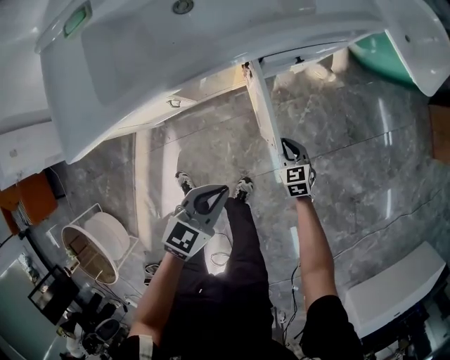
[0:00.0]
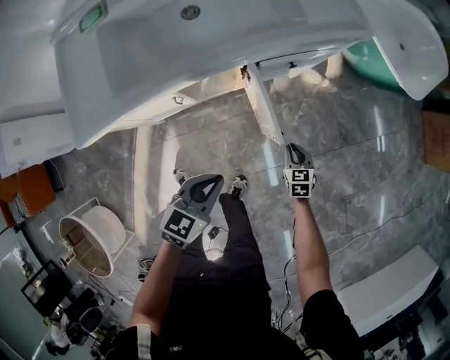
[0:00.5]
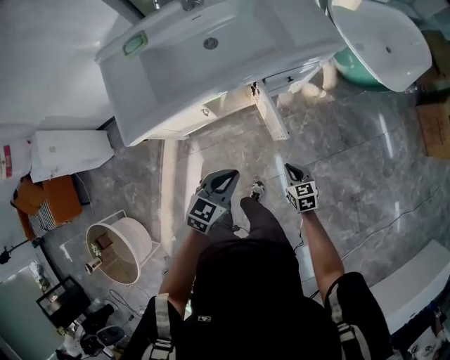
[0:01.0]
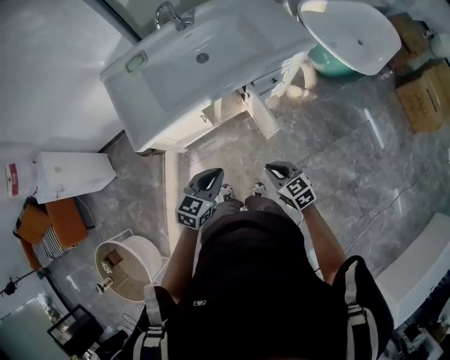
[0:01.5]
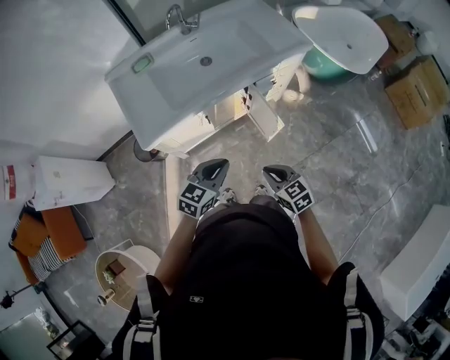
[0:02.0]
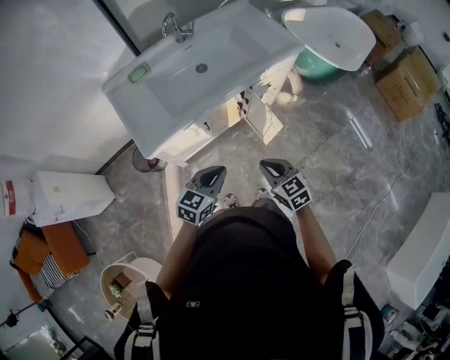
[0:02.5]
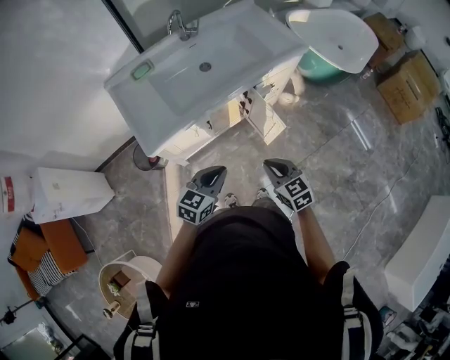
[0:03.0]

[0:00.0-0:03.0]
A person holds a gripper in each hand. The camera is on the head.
0:00.0 to 0:01.5: The right gripper shifts roughly 40 cm upward and backward; the left gripper shifts some 20 cm upward, to the left and backward.
0:01.5 to 0:03.0: The right gripper shifts some 10 cm to the left and upward. Meanwhile the left gripper moves to the left, about 5 cm.

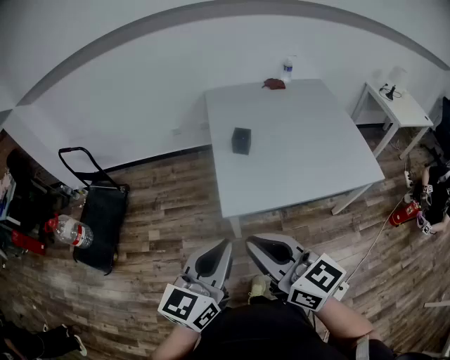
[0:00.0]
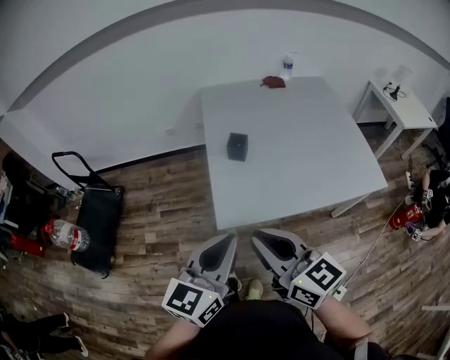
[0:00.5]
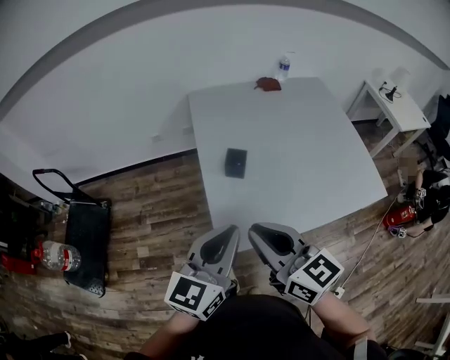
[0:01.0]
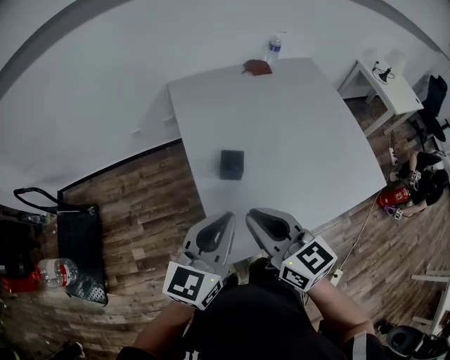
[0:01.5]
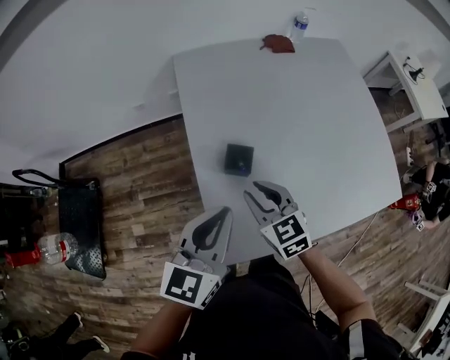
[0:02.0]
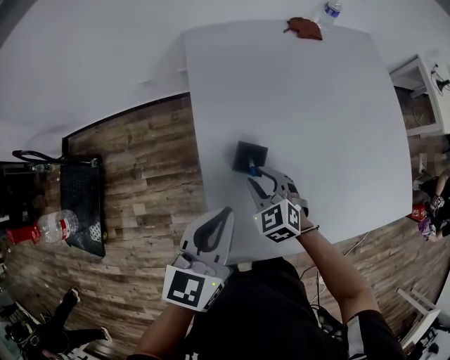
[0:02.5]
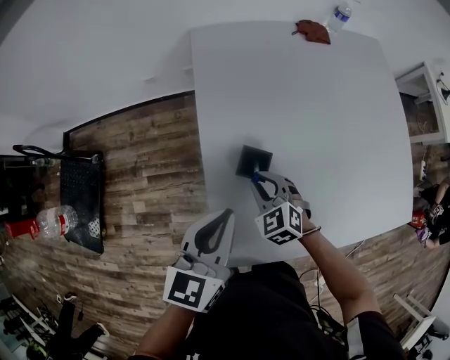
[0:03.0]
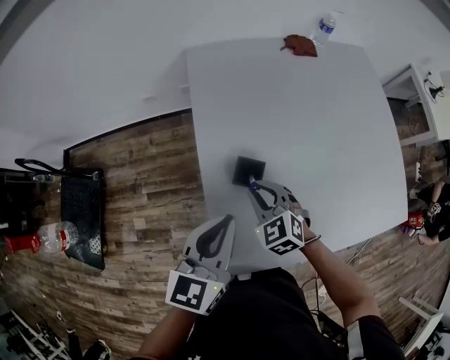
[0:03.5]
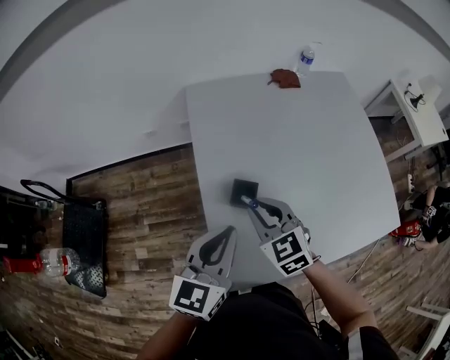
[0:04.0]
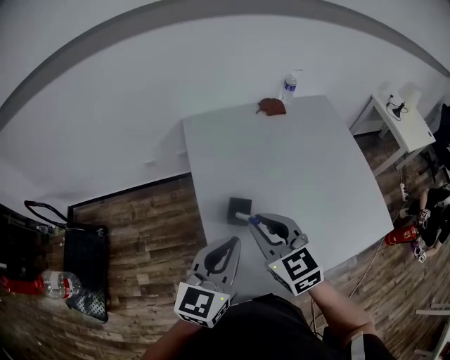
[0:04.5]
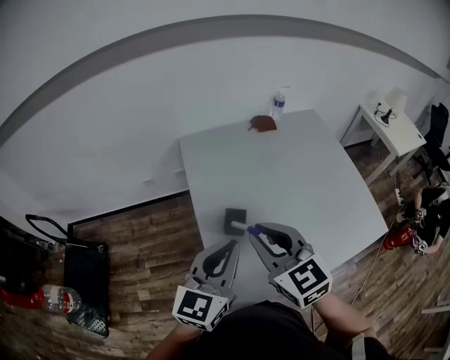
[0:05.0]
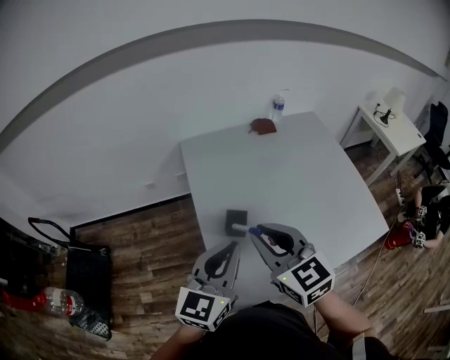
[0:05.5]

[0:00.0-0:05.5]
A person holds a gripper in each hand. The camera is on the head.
0:00.0 to 0:02.0: The left gripper shifts some 40 cm forward, while the right gripper travels forward and downward by some 50 cm, and points its fingers some 30 degrees further downward.
0:02.0 to 0:03.5: The right gripper is displaced downward and forward by about 10 cm, and turns by approximately 20 degrees.
0:03.5 to 0:05.5: The right gripper moves upward, about 25 cm, and turns by roughly 30 degrees. The left gripper is displaced upward by approximately 10 cm.

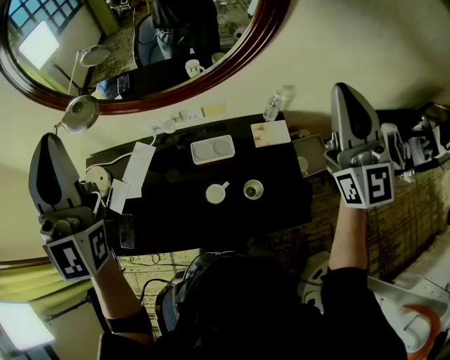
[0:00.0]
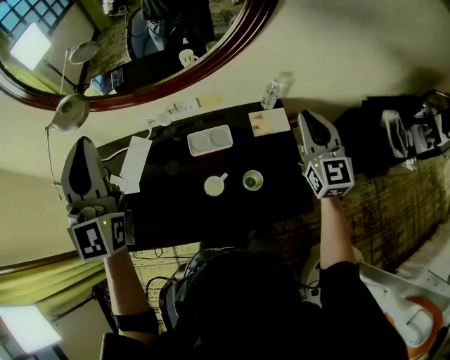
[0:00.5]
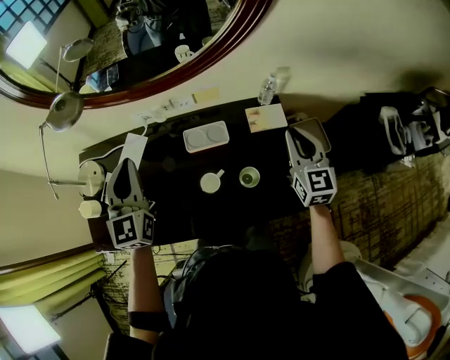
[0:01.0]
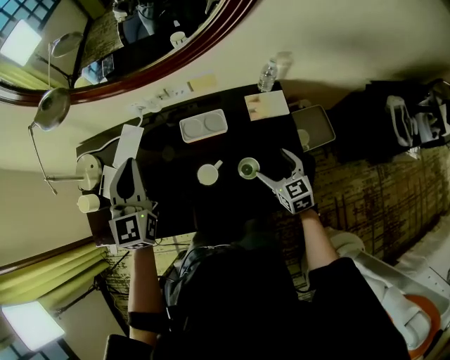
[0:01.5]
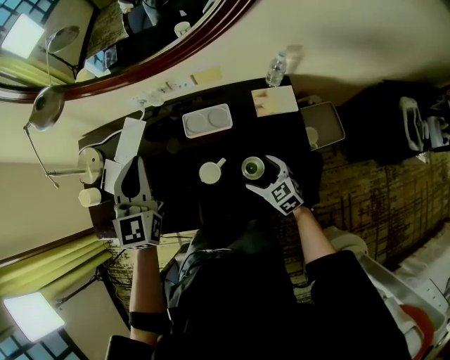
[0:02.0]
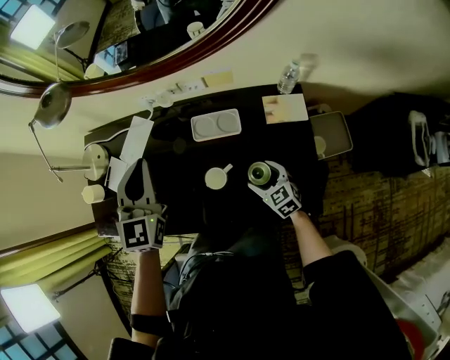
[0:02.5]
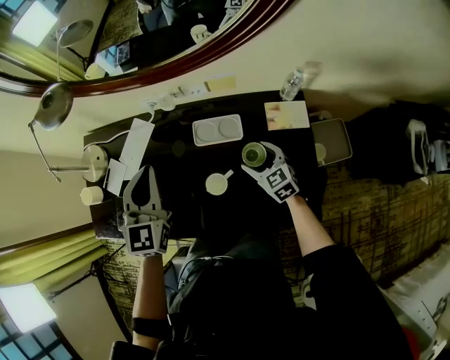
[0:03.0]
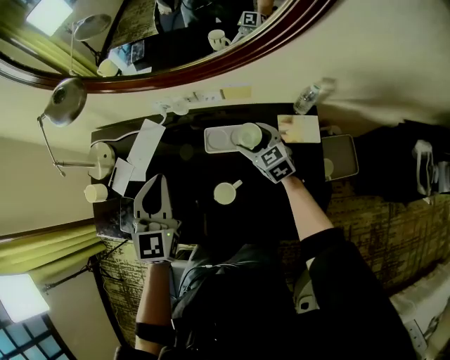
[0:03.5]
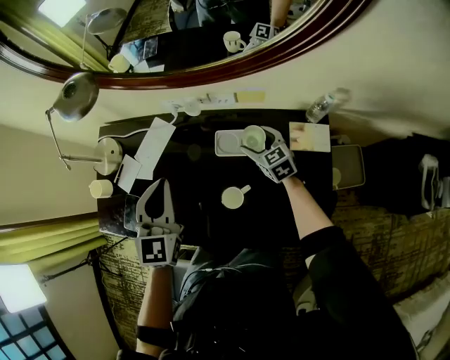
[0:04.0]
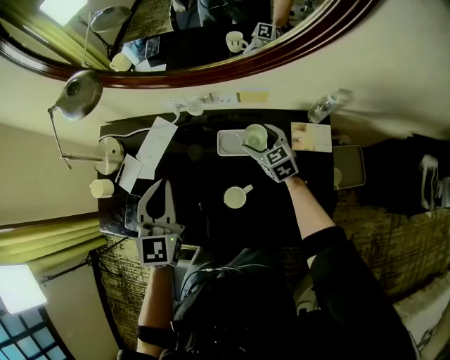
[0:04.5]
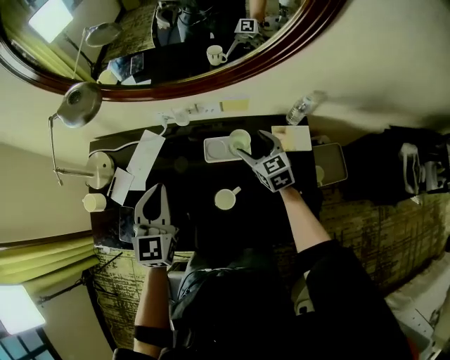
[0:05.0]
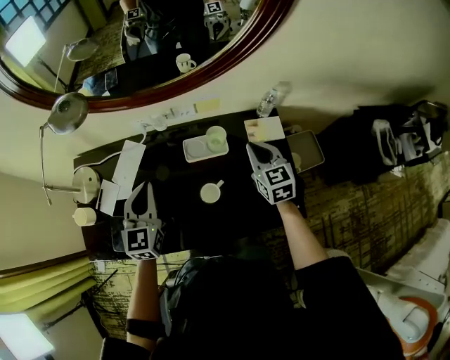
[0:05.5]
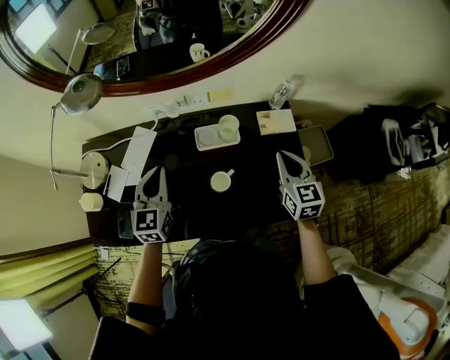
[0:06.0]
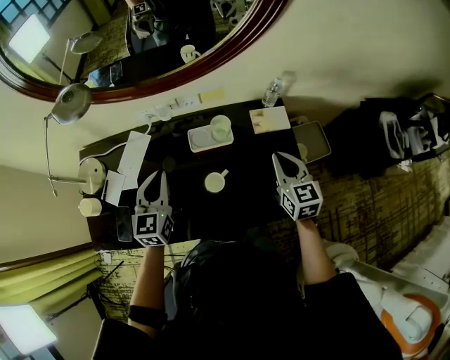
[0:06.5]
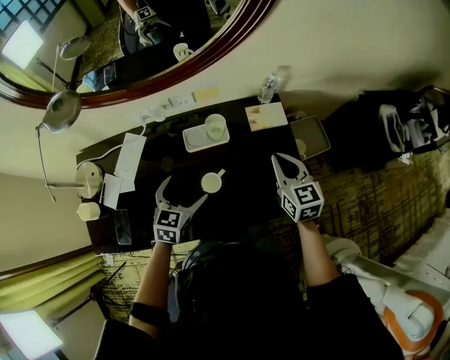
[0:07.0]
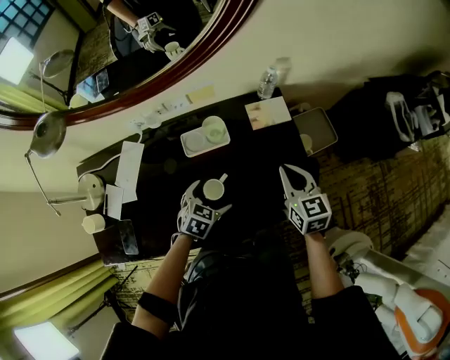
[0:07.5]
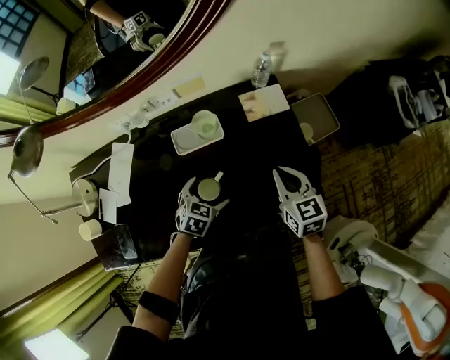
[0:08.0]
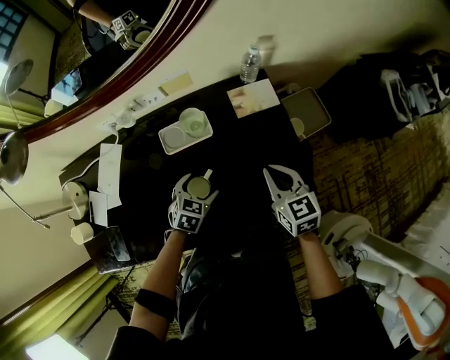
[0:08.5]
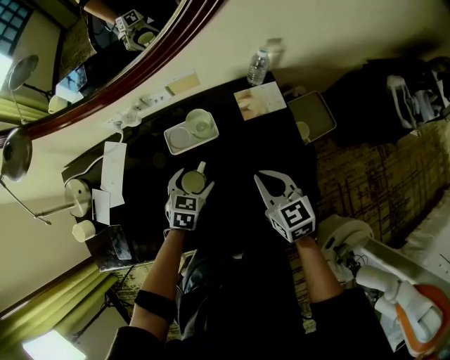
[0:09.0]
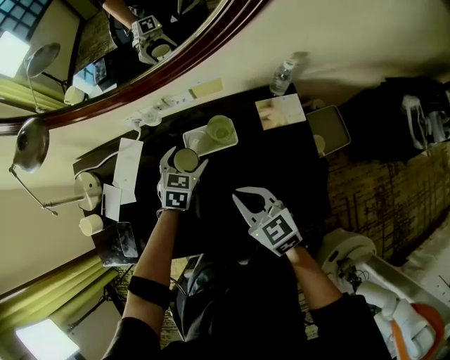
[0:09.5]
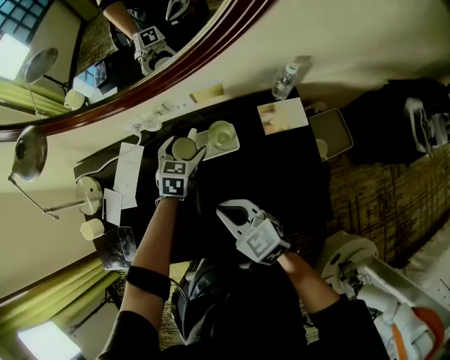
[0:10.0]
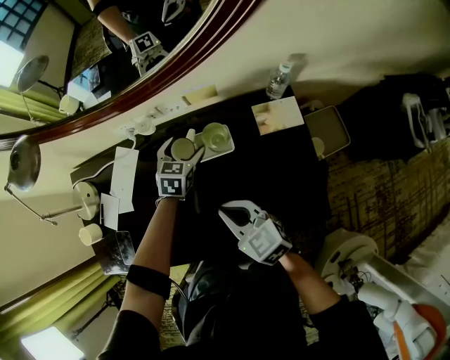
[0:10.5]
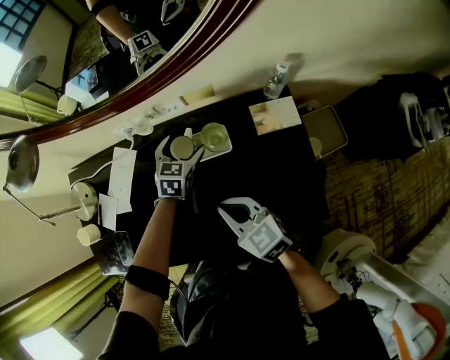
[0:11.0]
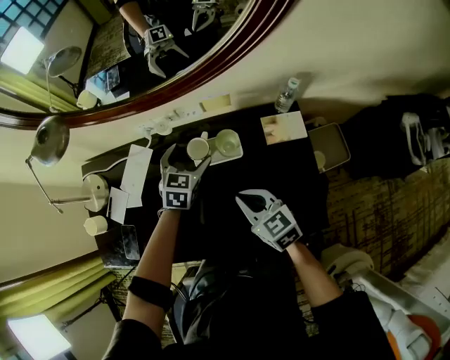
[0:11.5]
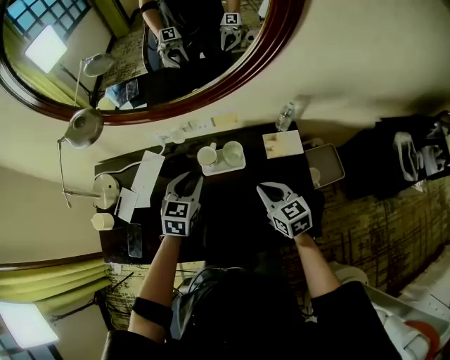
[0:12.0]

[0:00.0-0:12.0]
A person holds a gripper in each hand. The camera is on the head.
0:00.0 to 0:02.0: The left gripper goes about 30 cm downward, and tilts its fingers approximately 30 degrees downward, while the right gripper is displaced downward by roughly 60 cm, tilts its fingers about 60 degrees downward, and opens up.
0:02.0 to 0:04.0: The right gripper heads forward, covering some 25 cm.
0:04.0 to 0:06.0: The right gripper goes roughly 30 cm backward, upward and to the right, swivels about 30 degrees, and closes its fingers. The left gripper ends up about 5 cm from where it was.
0:06.0 to 0:08.0: The right gripper moves downward, roughly 10 cm. Meanwhile the left gripper goes approximately 30 cm downward and to the right, angles its fingers downward, by about 40 degrees, and opens up.
0:08.0 to 0:10.0: The right gripper moves roughly 20 cm, and rotates approximately 40 degrees, while the left gripper shifts by about 20 cm, and rotates approximately 20 degrees.
0:10.0 to 0:12.0: The left gripper moves upward and backward, approximately 15 cm, and closes; the right gripper heads to the right, covering some 15 cm.

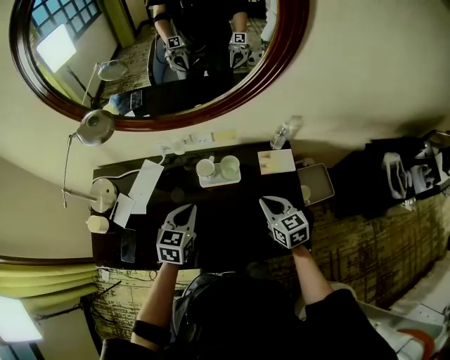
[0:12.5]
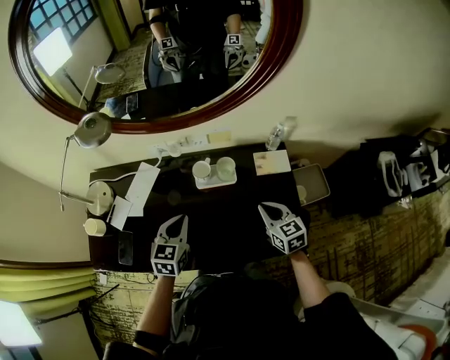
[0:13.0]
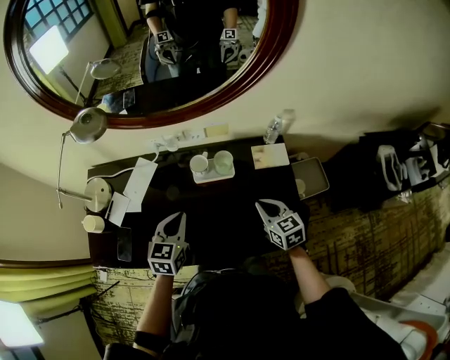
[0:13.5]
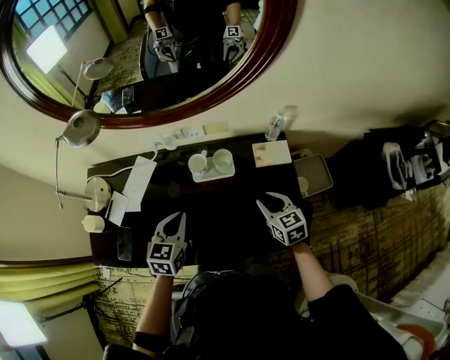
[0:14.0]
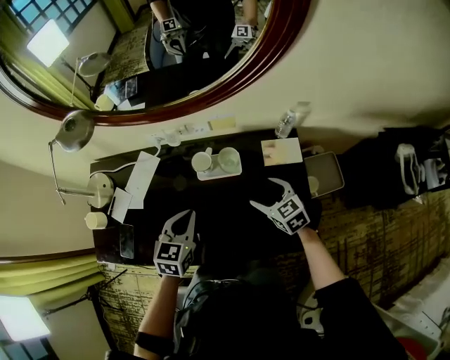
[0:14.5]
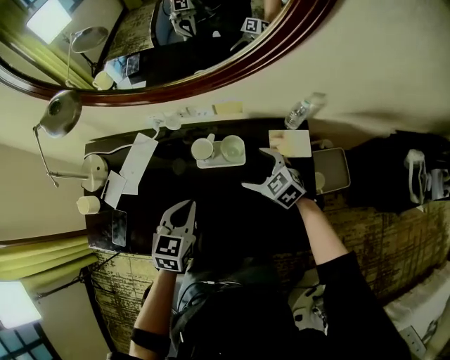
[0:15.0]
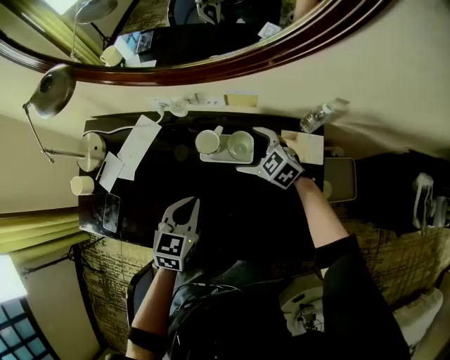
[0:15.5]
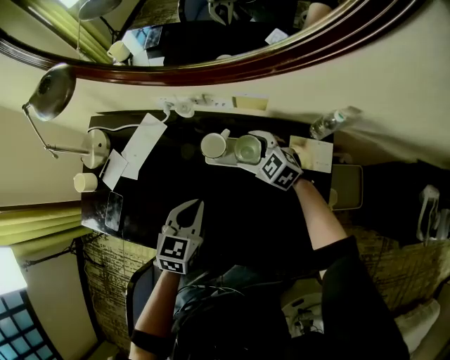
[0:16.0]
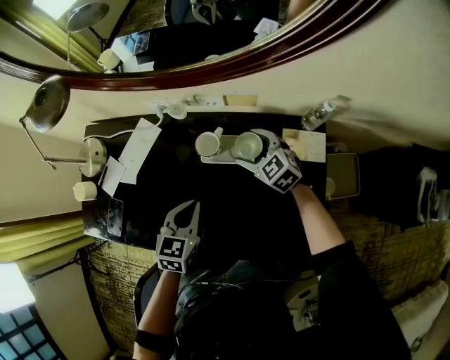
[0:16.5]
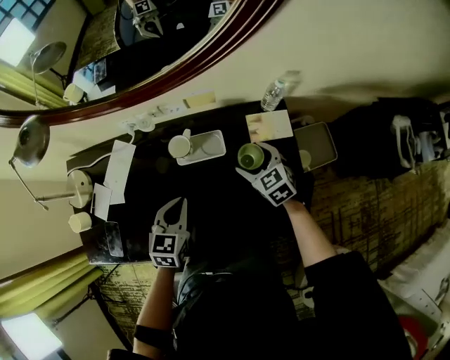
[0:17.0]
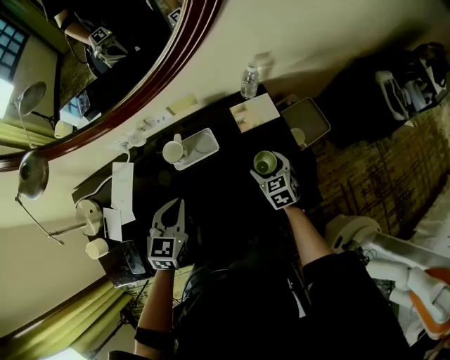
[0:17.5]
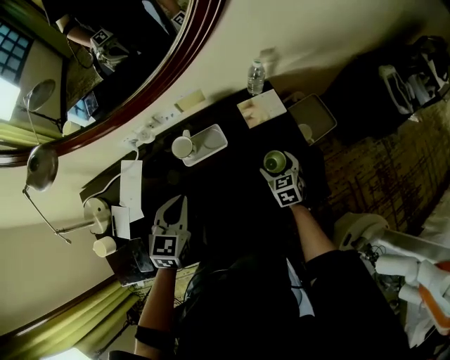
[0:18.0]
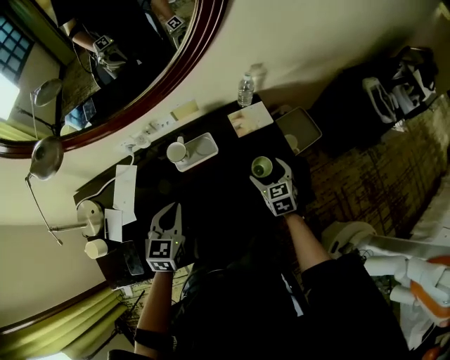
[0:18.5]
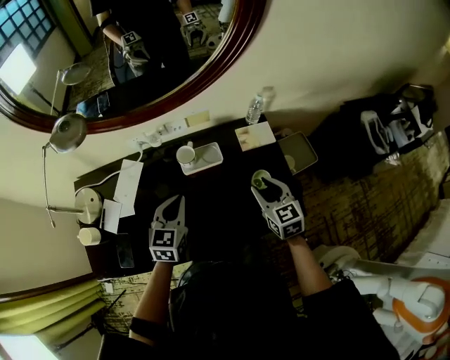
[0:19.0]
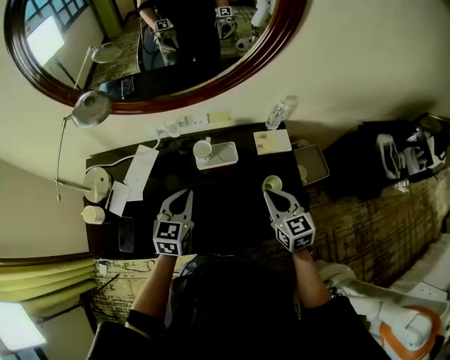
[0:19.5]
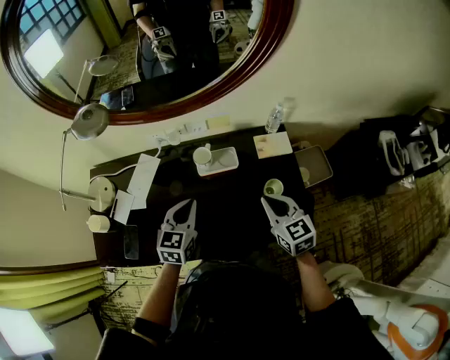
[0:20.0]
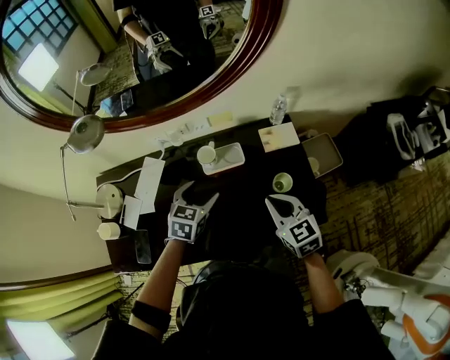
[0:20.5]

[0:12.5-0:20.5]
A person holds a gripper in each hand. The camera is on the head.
0:12.5 to 0:14.5: The right gripper heads downward, covering roughly 5 cm, and opens its fingers.
0:14.5 to 0:16.5: The left gripper goes some 5 cm downward. Meanwhile the right gripper moves forward, approximately 15 cm, and changes its angle by some 30 degrees.
0:16.5 to 0:18.5: The left gripper moves upward, roughly 5 cm, and changes its angle by approximately 20 degrees. Meanwhile the right gripper reaches about 5 cm downward, then returns, and changes its angle by approximately 60 degrees.
0:18.5 to 0:20.5: The left gripper opens. Meanwhile the right gripper is displaced upward, to the left and backward by approximately 20 cm, rotates about 20 degrees, and closes its fingers.
